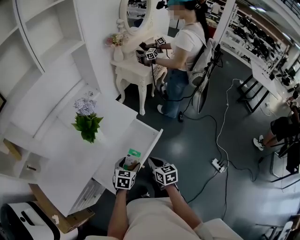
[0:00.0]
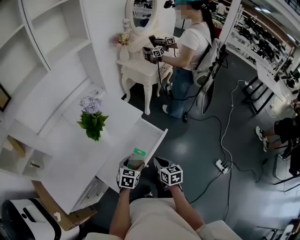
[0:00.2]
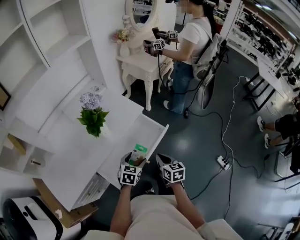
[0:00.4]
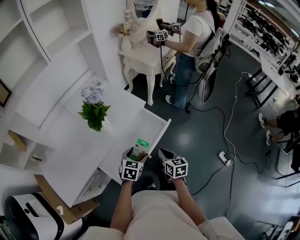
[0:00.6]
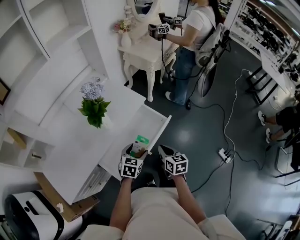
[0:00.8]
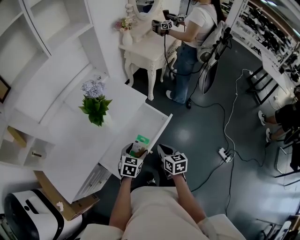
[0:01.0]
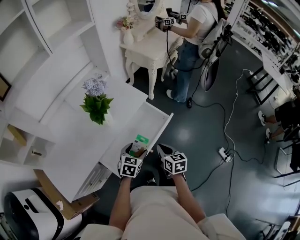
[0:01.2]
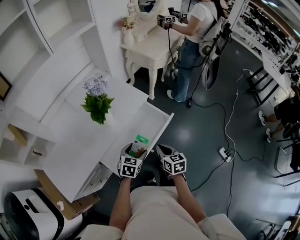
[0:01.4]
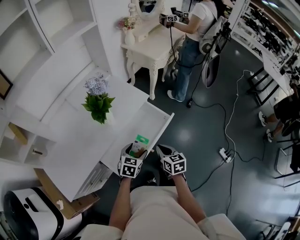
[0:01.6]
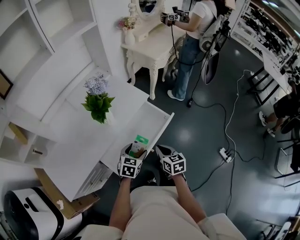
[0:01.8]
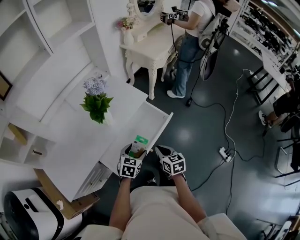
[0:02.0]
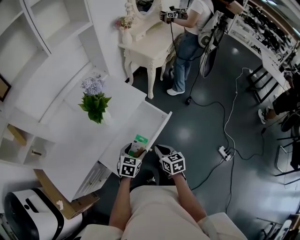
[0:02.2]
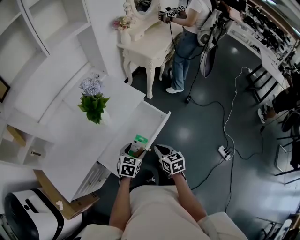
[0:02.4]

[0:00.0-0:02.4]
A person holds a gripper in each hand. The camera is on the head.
0:00.0 to 0:02.4: The grippers stay close to where they were, moving slightly.

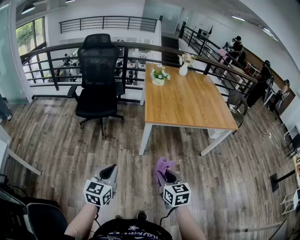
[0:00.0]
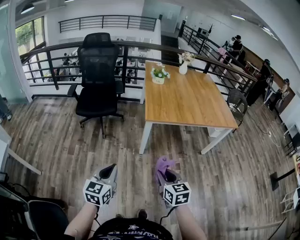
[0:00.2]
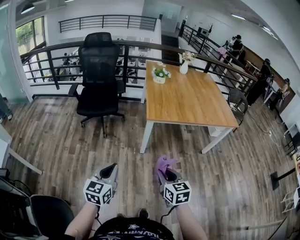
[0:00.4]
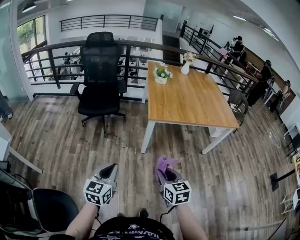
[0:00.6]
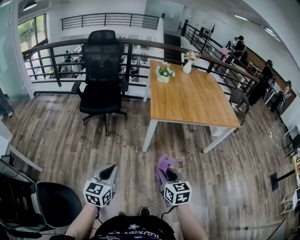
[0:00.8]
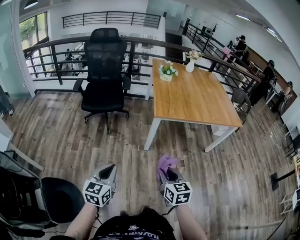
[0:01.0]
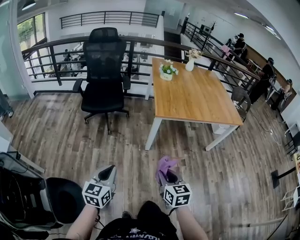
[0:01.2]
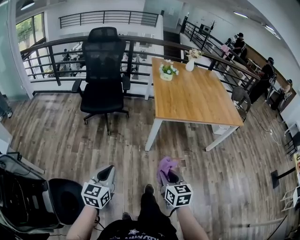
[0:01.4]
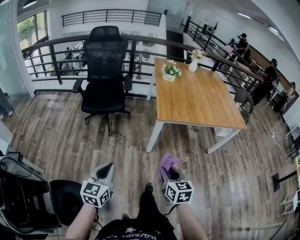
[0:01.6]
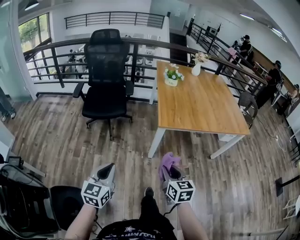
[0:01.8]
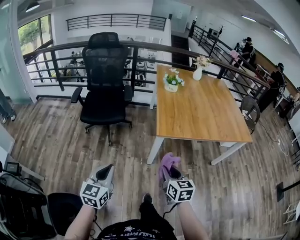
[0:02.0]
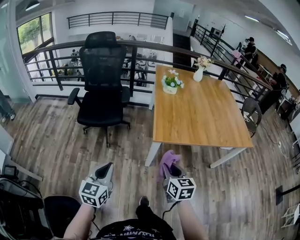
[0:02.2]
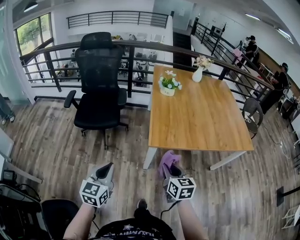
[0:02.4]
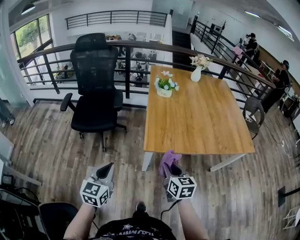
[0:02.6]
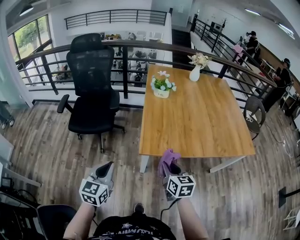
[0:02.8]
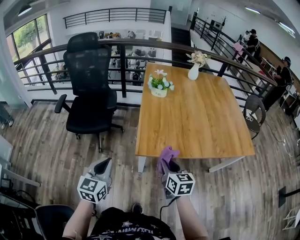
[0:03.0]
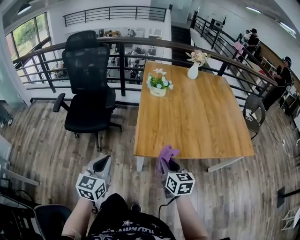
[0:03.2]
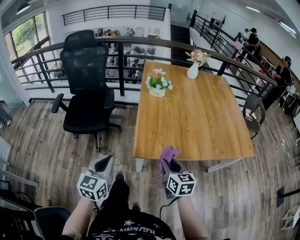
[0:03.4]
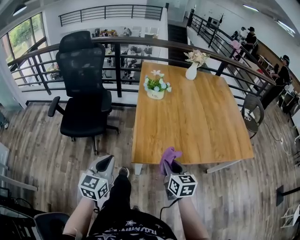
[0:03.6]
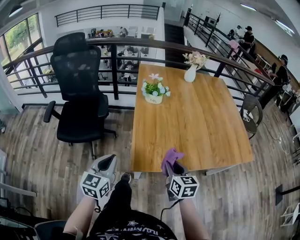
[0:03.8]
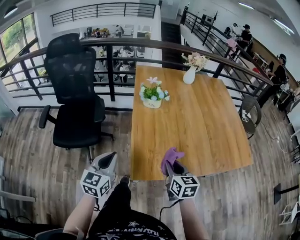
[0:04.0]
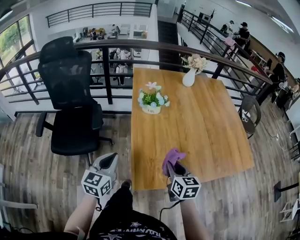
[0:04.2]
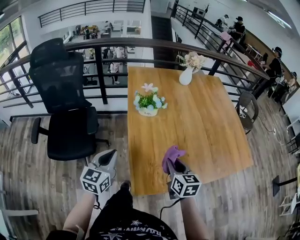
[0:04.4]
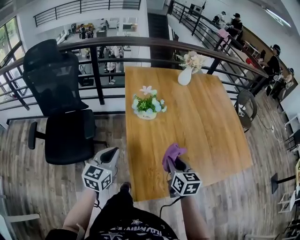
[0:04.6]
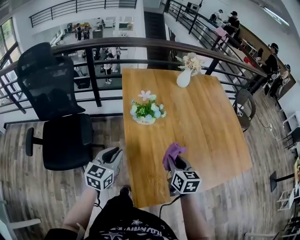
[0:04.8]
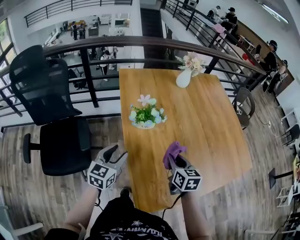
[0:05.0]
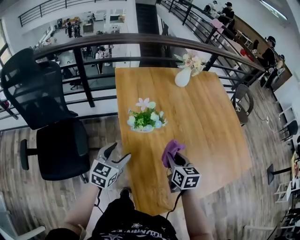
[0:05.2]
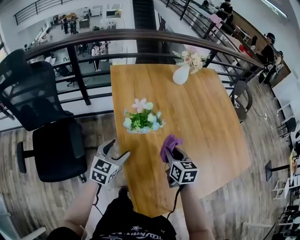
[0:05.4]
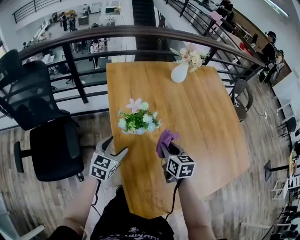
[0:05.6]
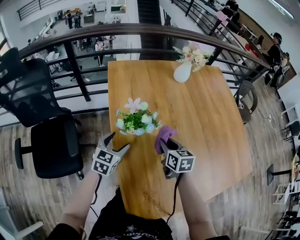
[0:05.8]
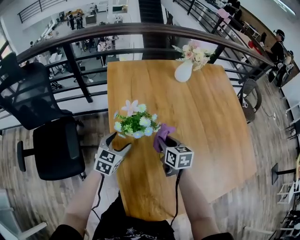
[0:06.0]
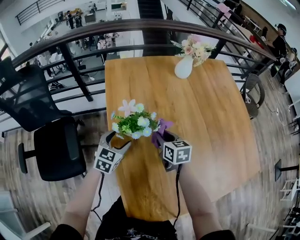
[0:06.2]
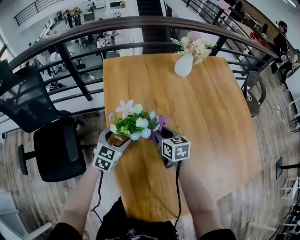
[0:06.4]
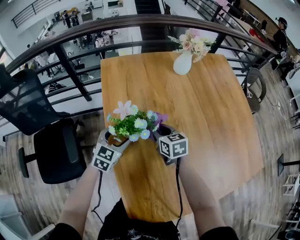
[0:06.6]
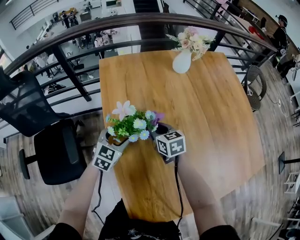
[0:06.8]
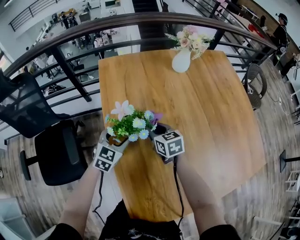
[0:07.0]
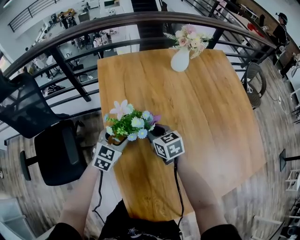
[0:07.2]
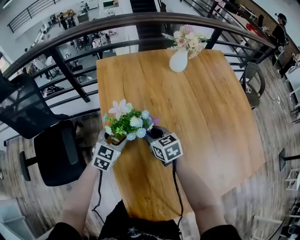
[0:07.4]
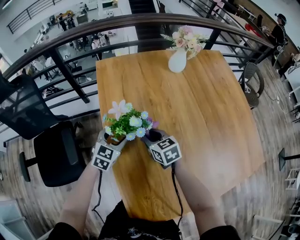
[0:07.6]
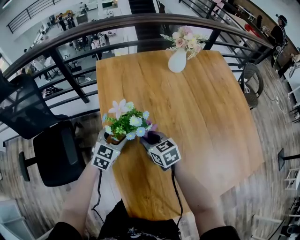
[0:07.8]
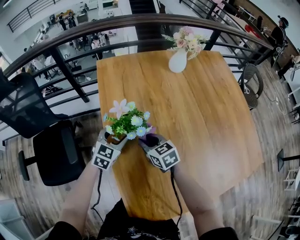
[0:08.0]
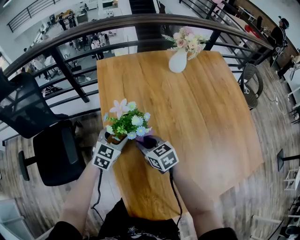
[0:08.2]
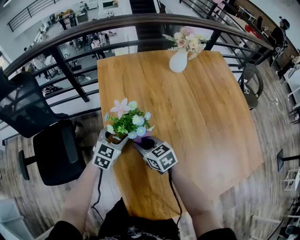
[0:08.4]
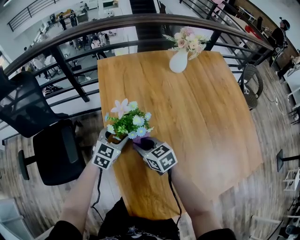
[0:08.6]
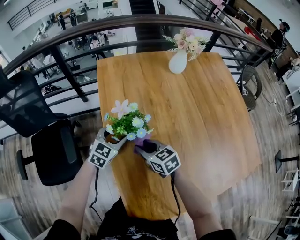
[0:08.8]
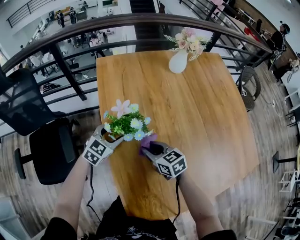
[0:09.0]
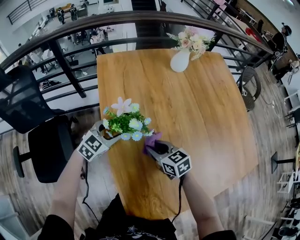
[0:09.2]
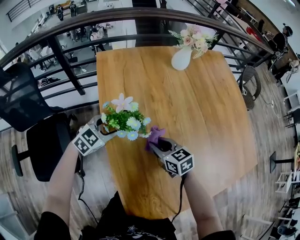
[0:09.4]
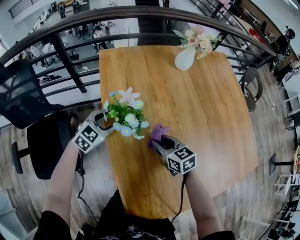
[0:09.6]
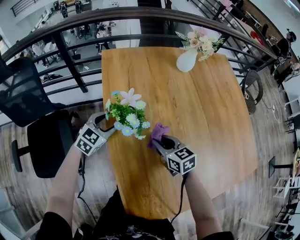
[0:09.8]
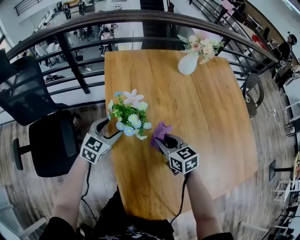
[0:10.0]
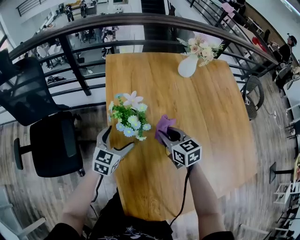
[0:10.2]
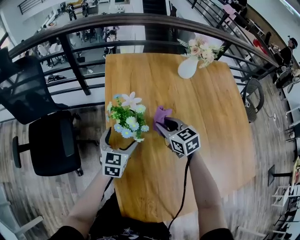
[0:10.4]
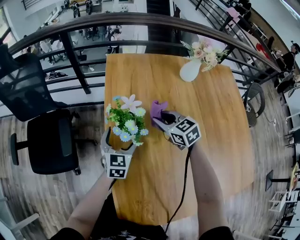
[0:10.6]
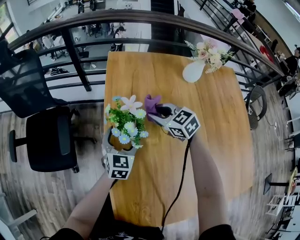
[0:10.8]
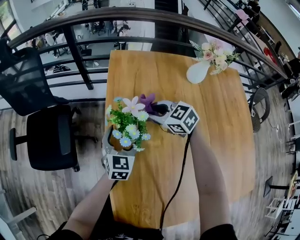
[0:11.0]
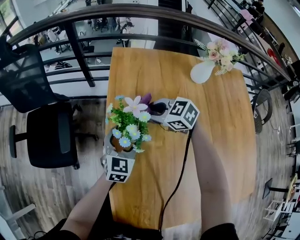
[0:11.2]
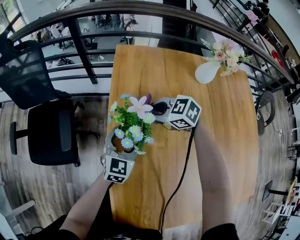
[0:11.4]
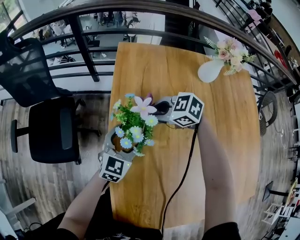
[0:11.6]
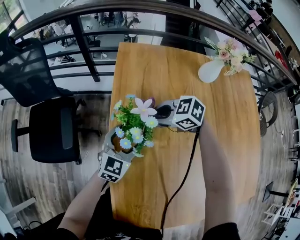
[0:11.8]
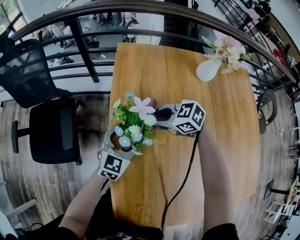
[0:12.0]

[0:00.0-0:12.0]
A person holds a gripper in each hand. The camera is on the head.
0:00.0 to 0:01.6: The left gripper is displaced to the left by approximately 10 cm; the right gripper moves to the left, roughly 5 cm.
0:01.6 to 0:03.0: Both grippers travel together forward and to the right, roughly 35 cm.
0:03.0 to 0:04.4: Both grippers travel together forward, approximately 25 cm.
0:04.4 to 0:06.0: The right gripper moves forward, approximately 30 cm; the left gripper moves forward and downward, roughly 30 cm, turns by about 20 degrees, and opens up.
0:06.0 to 0:07.6: The right gripper moves to the left, some 5 cm, while the left gripper changes place by roughly 5 cm.
0:07.6 to 0:09.0: The right gripper travels backward by roughly 5 cm.
0:09.0 to 0:10.4: The right gripper shifts roughly 10 cm forward. Meanwhile the left gripper swivels approximately 30 degrees, and opens up.
0:10.4 to 0:12.0: The right gripper moves some 10 cm, and swivels approximately 50 degrees.

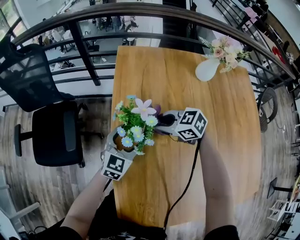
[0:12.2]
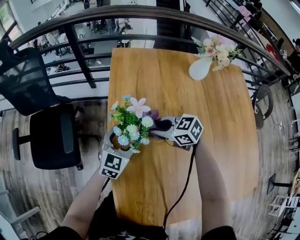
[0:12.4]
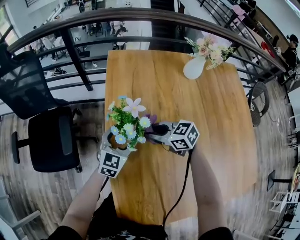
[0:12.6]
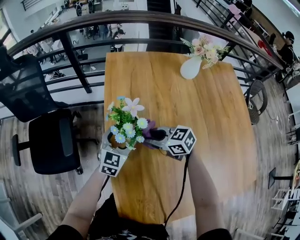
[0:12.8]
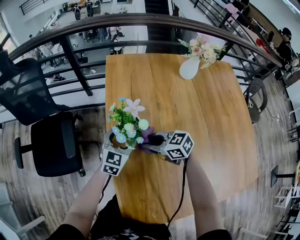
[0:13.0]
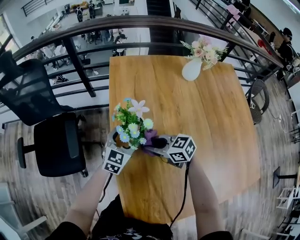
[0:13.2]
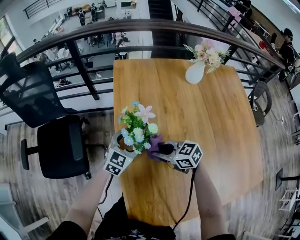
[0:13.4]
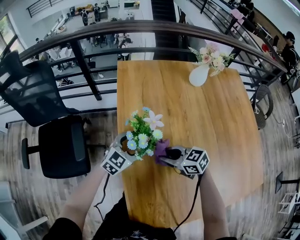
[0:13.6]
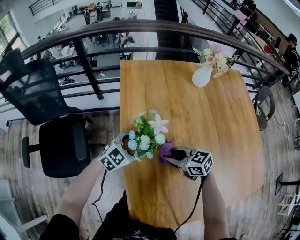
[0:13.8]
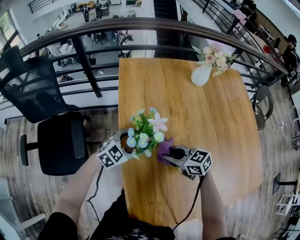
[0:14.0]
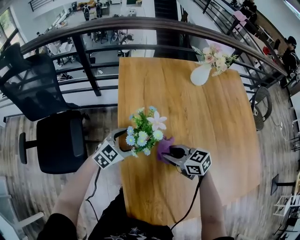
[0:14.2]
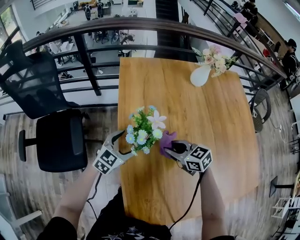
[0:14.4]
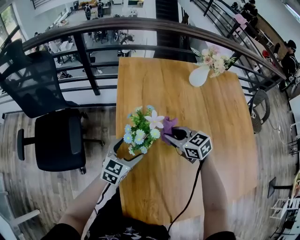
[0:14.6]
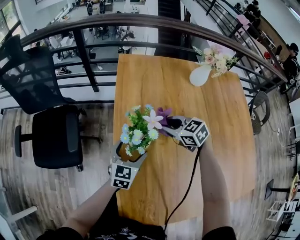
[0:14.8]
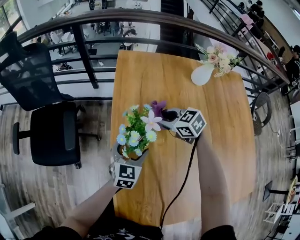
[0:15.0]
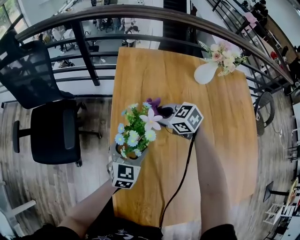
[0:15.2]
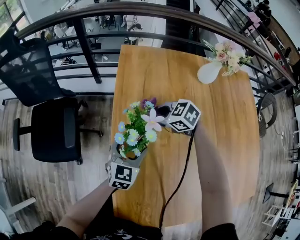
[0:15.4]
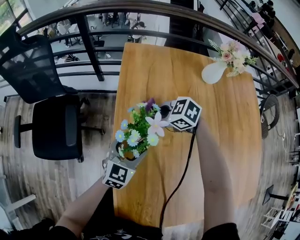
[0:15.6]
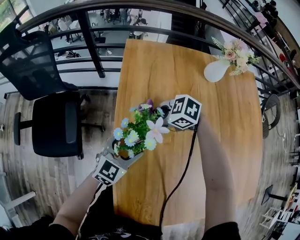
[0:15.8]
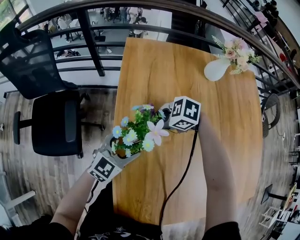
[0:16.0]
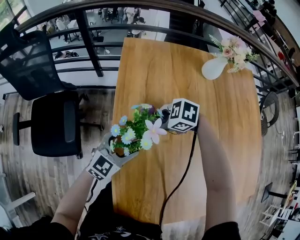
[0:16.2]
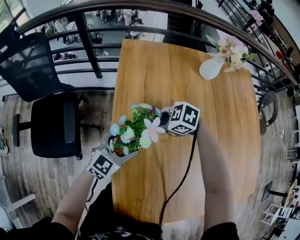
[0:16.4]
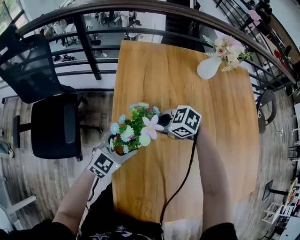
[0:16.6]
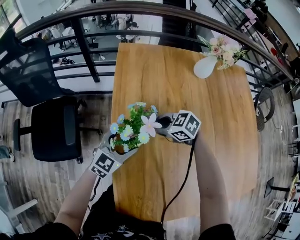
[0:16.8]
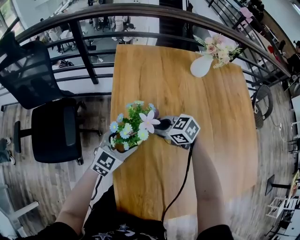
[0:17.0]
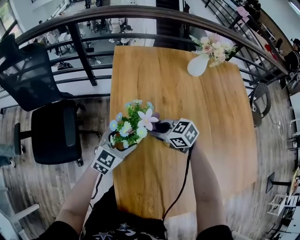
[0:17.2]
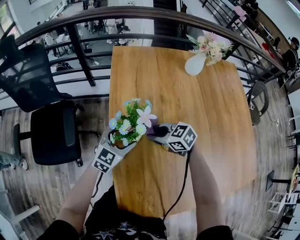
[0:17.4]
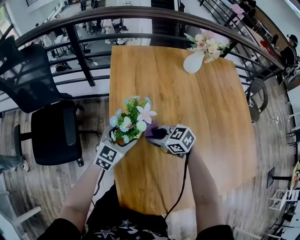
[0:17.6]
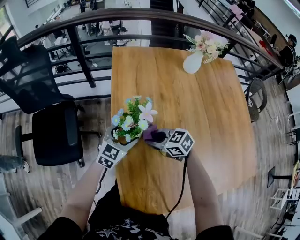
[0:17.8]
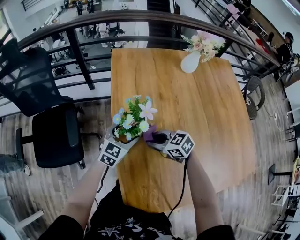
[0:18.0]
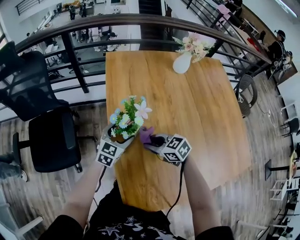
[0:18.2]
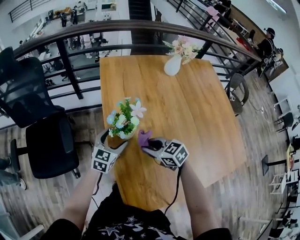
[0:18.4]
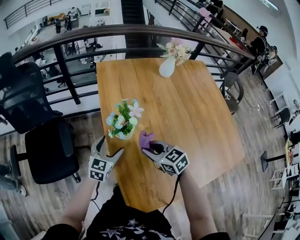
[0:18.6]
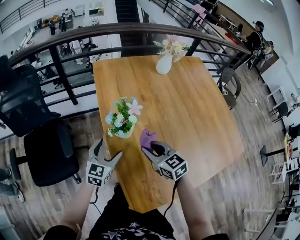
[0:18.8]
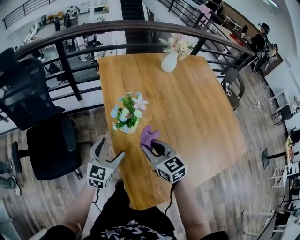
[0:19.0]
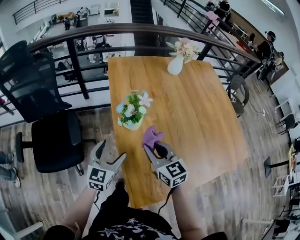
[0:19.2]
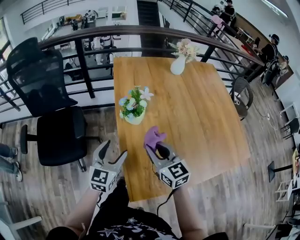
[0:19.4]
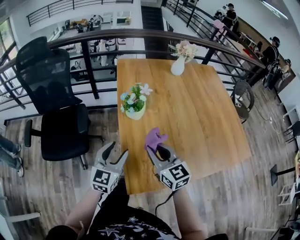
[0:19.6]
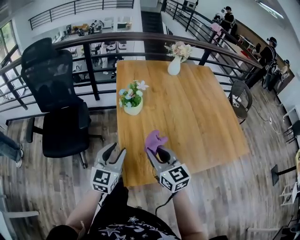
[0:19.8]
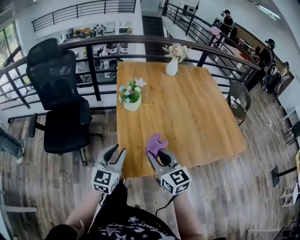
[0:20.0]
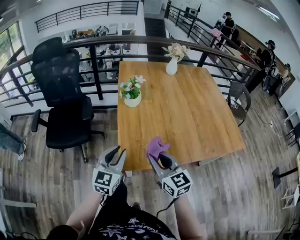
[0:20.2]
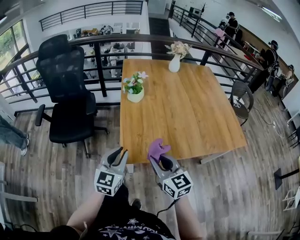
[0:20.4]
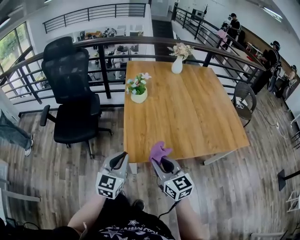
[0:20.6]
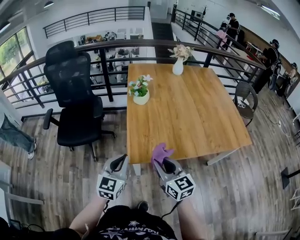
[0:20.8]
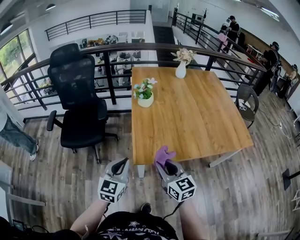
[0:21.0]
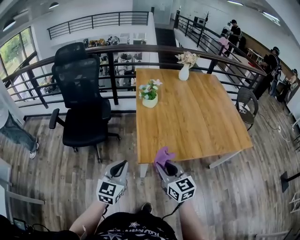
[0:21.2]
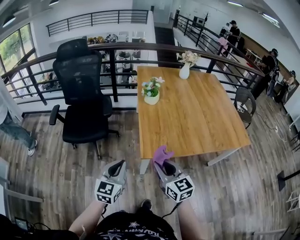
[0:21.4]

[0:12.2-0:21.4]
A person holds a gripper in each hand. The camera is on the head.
0:12.2 to 0:13.8: The left gripper swivels approximately 30 degrees. The right gripper moves roughly 10 cm, and turns by about 20 degrees.
0:13.8 to 0:15.2: The left gripper rotates roughly 40 degrees; the right gripper changes place by roughly 15 cm, and swivels about 20 degrees.
0:15.2 to 0:16.8: The left gripper rotates roughly 30 degrees; the right gripper changes place by some 10 cm.
0:16.8 to 0:18.4: The right gripper changes place by approximately 15 cm, and changes its angle by approximately 30 degrees.
0:18.4 to 0:19.8: Both grippers move backward and upward, roughly 30 cm. The left gripper closes its fingers; the right gripper swivels roughly 40 degrees.
0:19.8 to 0:21.4: The left gripper goes approximately 25 cm backward and to the left. The right gripper moves backward, approximately 25 cm.
